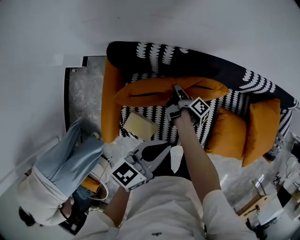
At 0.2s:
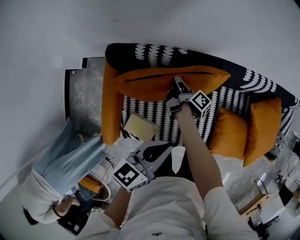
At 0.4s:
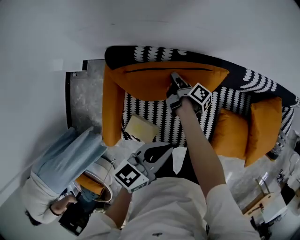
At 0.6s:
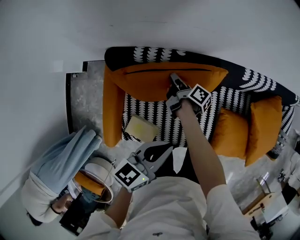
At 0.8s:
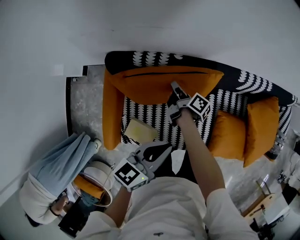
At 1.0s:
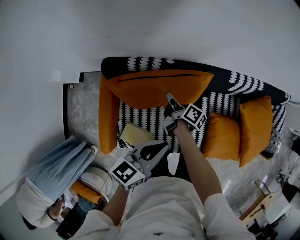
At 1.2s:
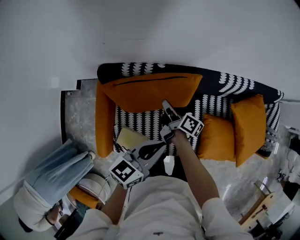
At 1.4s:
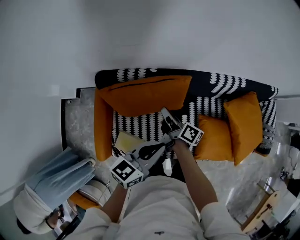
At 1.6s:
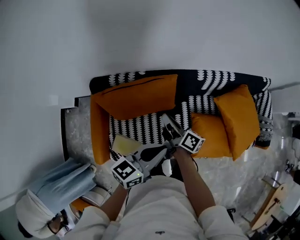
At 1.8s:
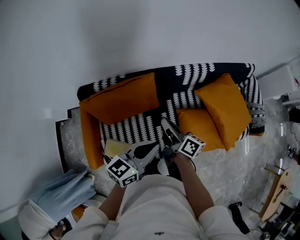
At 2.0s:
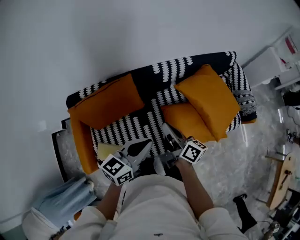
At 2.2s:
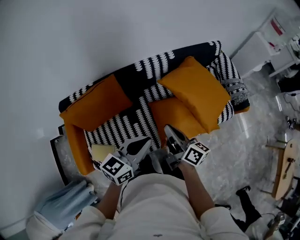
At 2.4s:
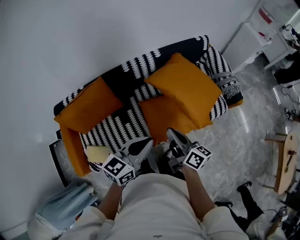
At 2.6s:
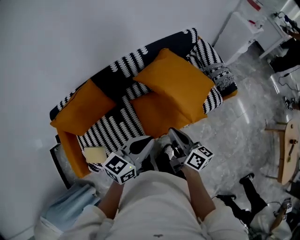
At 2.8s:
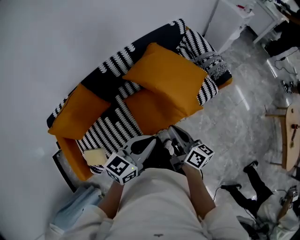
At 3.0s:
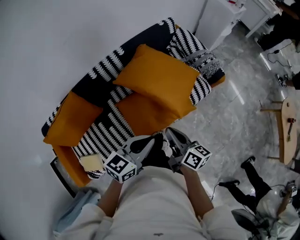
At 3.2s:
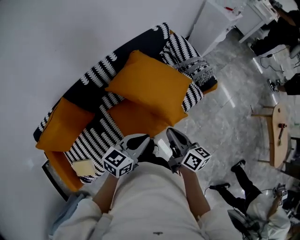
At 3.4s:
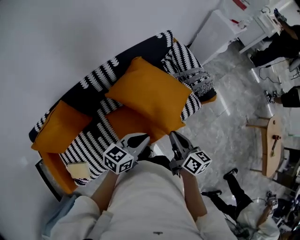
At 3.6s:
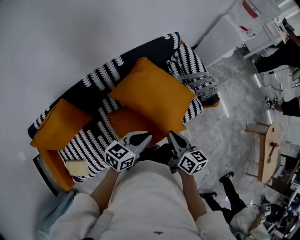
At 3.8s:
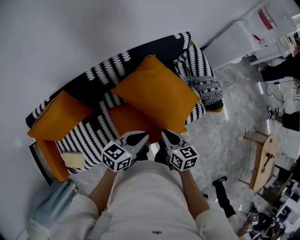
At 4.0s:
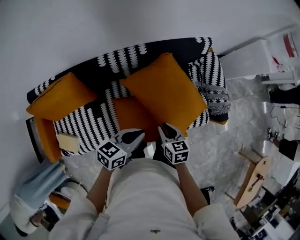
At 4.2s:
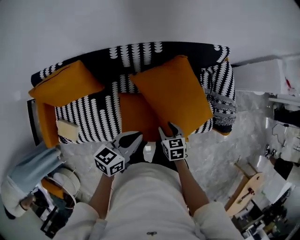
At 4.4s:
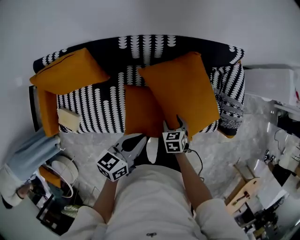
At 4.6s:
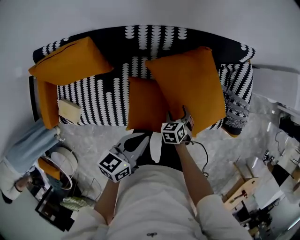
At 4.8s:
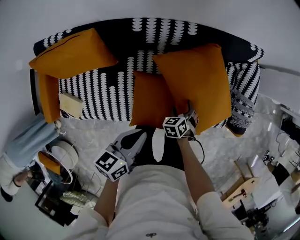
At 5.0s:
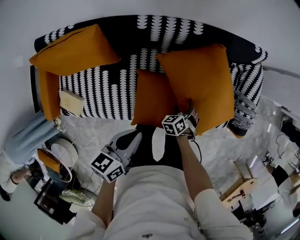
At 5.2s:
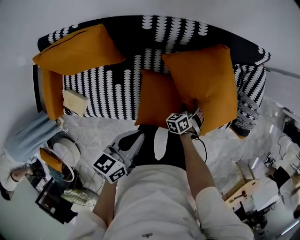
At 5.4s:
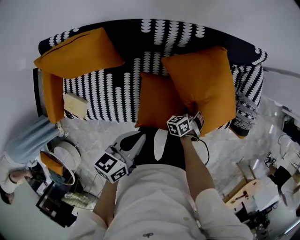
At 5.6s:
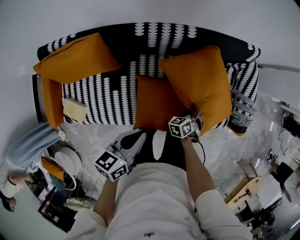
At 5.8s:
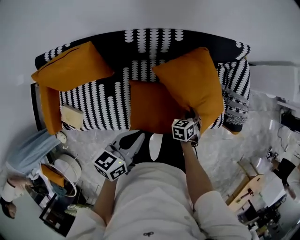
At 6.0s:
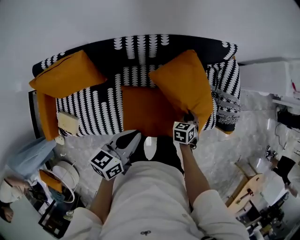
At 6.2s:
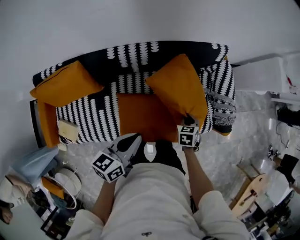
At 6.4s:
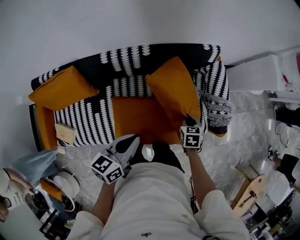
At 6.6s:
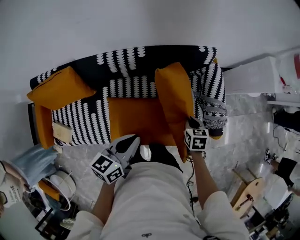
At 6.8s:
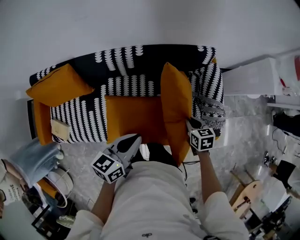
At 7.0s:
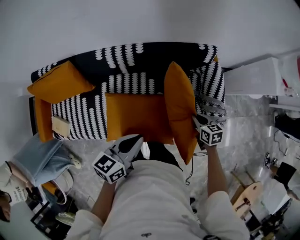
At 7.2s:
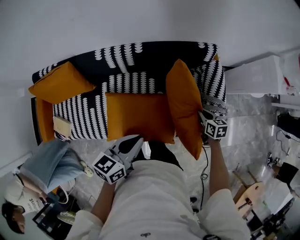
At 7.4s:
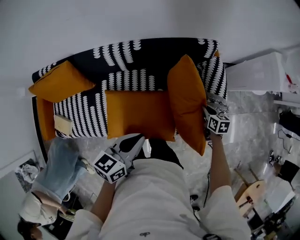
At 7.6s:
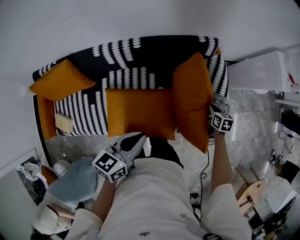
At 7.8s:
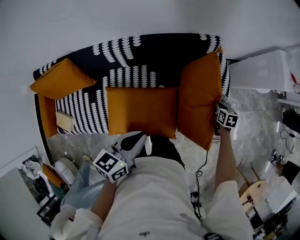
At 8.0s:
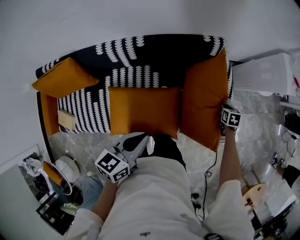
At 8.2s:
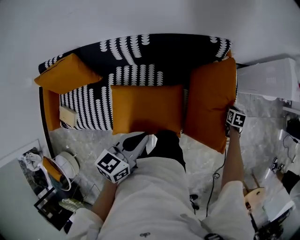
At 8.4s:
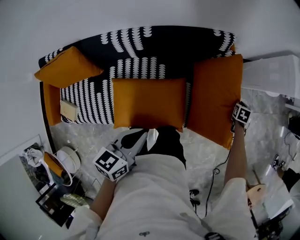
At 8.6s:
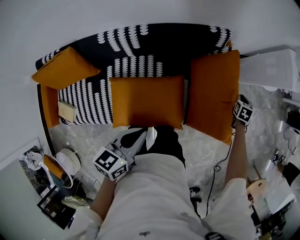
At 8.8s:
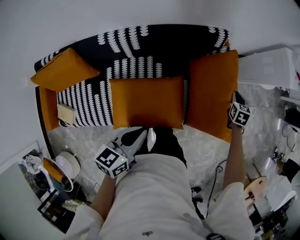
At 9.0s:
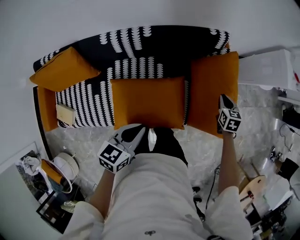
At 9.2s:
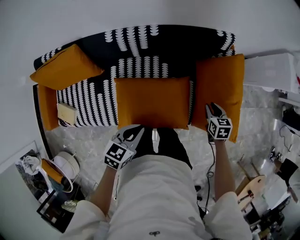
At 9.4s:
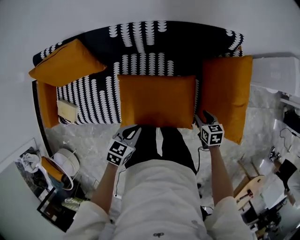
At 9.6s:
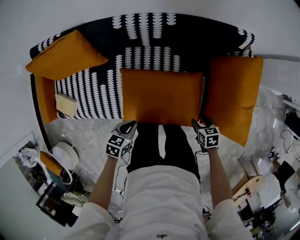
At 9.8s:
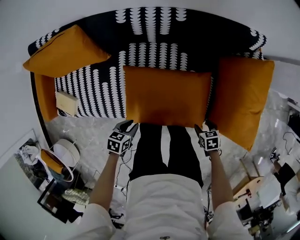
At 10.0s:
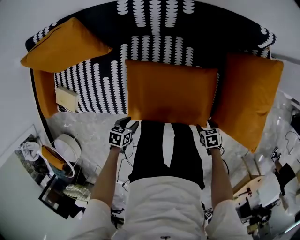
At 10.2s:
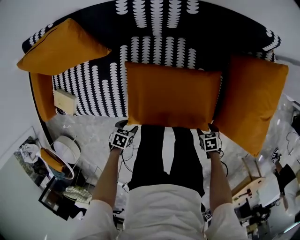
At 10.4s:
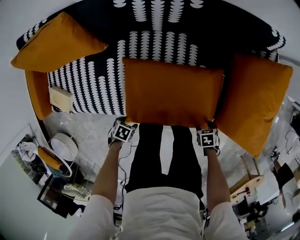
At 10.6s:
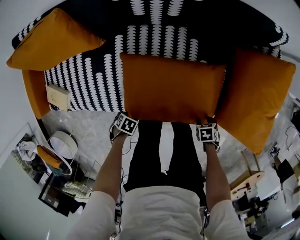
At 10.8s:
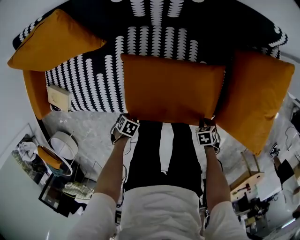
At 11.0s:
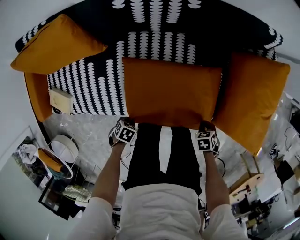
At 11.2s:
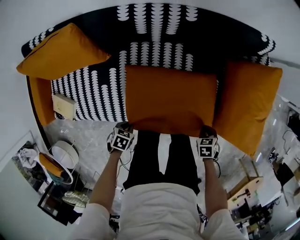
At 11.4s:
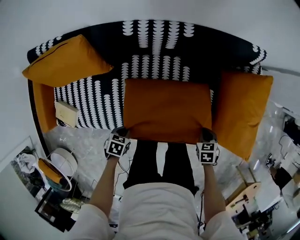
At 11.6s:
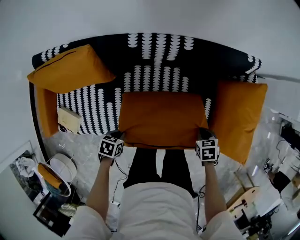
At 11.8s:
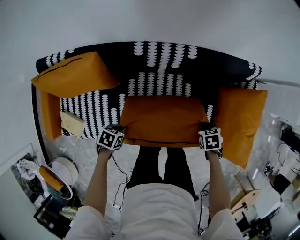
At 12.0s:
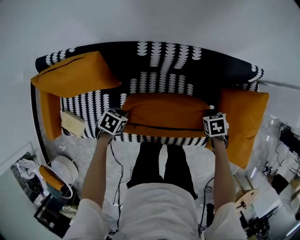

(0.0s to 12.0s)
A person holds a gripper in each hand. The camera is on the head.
0.0s - 1.6s: The right gripper heads upward and to the right, covering about 25 cm, and changes its angle by approximately 40 degrees, while the left gripper shifts some 15 cm to the right and upward.
1.6s - 3.0s: Both grippers are carried roughly 50 cm. The left gripper swivels roughly 30 degrees. The right gripper turns by roughly 30 degrees.
3.0s - 4.4s: The right gripper shifts roughly 20 cm downward, tips its fingers downward by some 50 degrees, and opens its fingers, while the left gripper changes place by roughly 20 cm, and swivels some 40 degrees.
4.4s - 6.0s: The right gripper goes about 10 cm to the right and forward, swivels roughly 20 degrees, and closes its fingers.
6.0s - 7.6s: The right gripper travels upward and back again, about 10 cm each way, and swivels some 30 degrees. The left gripper shifts by roughly 20 cm.
7.6s - 9.0s: The left gripper changes place by approximately 10 cm, while the right gripper moves upward, some 5 cm.
9.0s - 10.4s: The right gripper shifts by approximately 40 cm, tips its fingers downward by roughly 30 degrees, and opens, while the left gripper shifts some 40 cm downward, tips its fingers downward by approximately 40 degrees, and opens its fingers.
10.4s - 12.0s: The right gripper shifts by roughly 35 cm, and closes up, while the left gripper ends up some 35 cm from where it was, and closes.

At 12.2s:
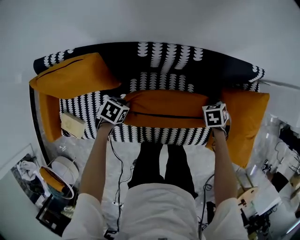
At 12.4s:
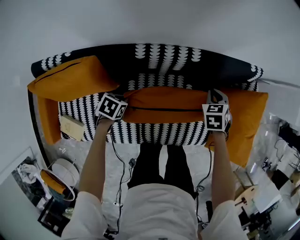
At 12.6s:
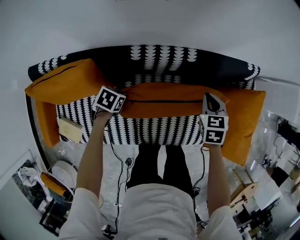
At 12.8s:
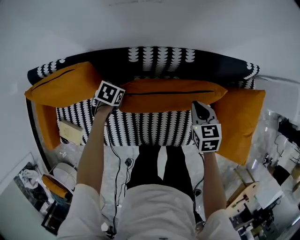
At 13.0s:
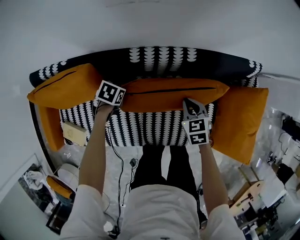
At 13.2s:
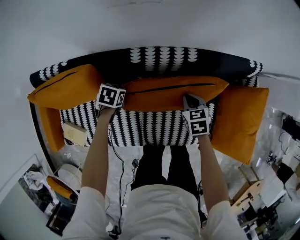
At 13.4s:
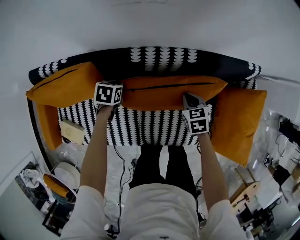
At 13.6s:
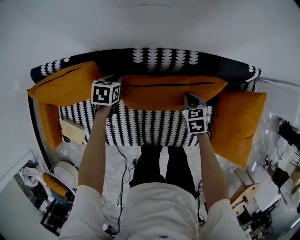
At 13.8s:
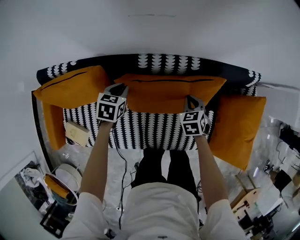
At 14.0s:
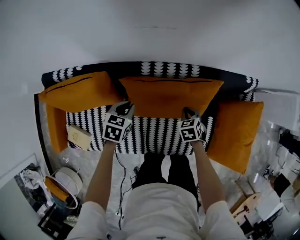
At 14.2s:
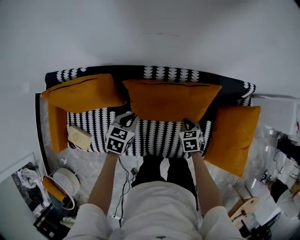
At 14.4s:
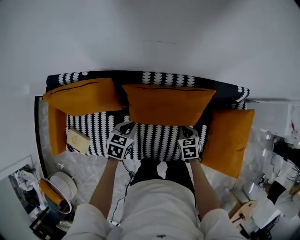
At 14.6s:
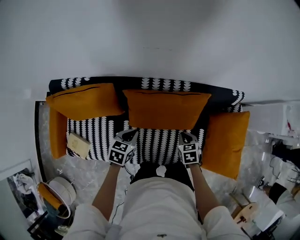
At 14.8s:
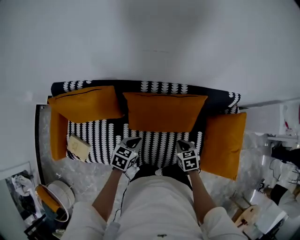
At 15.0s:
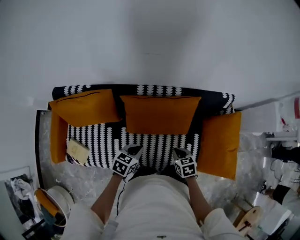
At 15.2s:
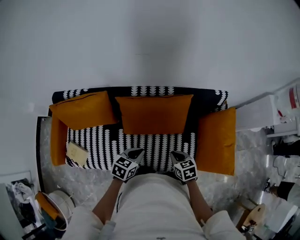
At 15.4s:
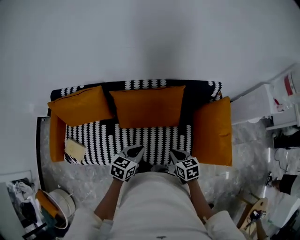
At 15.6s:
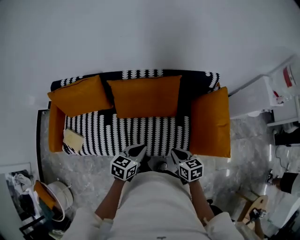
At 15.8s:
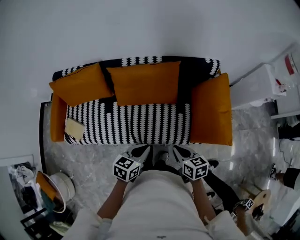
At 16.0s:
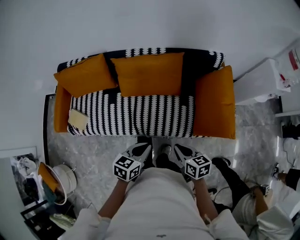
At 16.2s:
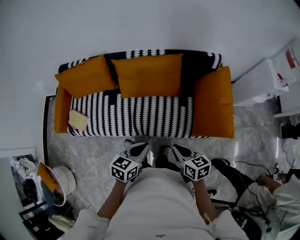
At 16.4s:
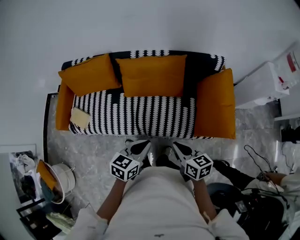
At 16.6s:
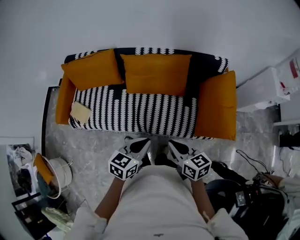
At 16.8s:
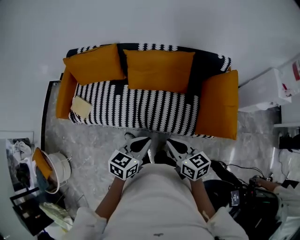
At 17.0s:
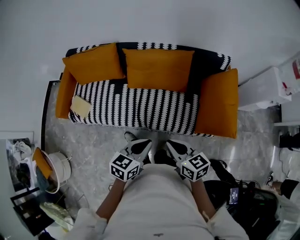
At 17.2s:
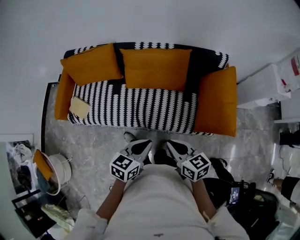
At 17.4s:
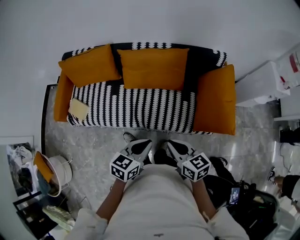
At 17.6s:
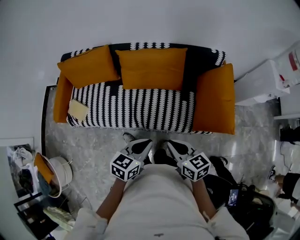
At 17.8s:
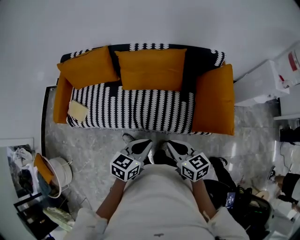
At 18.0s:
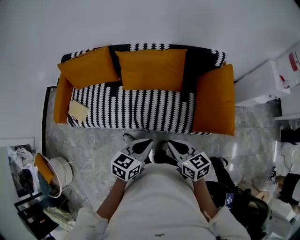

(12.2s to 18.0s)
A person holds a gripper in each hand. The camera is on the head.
12.2s - 13.6s: The right gripper goes upward and returns, some 10 cm each way, and turns by about 20 degrees; the left gripper moves some 15 cm, and rotates about 30 degrees.
13.6s - 15.0s: The right gripper travels backward and upward by some 20 cm; the left gripper moves backward, to the right and upward, about 30 cm, and changes its angle by some 20 degrees.
15.0s - 16.6s: The right gripper moves backward and upward, roughly 35 cm, and tilts its fingers approximately 30 degrees upward; the left gripper shifts about 35 cm backward, to the right and upward.
16.6s - 18.0s: There are only small adjustments of the grippers.

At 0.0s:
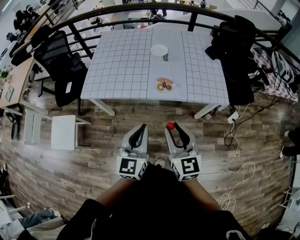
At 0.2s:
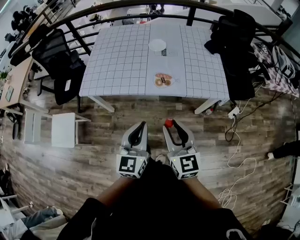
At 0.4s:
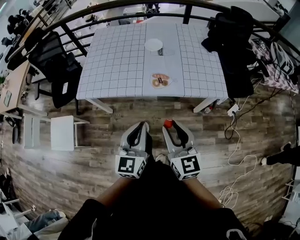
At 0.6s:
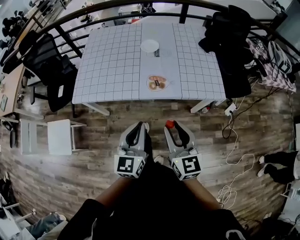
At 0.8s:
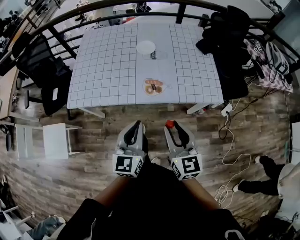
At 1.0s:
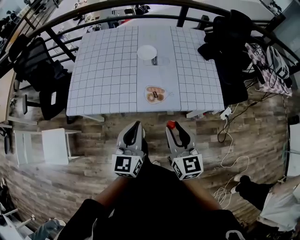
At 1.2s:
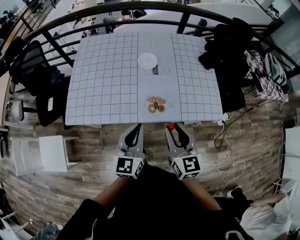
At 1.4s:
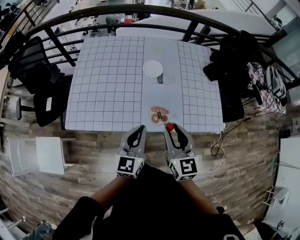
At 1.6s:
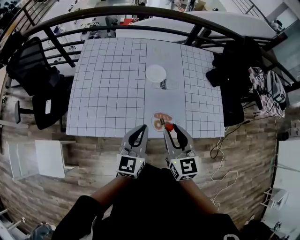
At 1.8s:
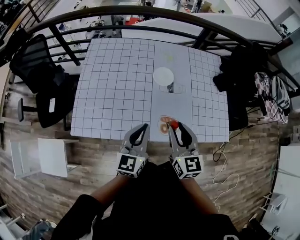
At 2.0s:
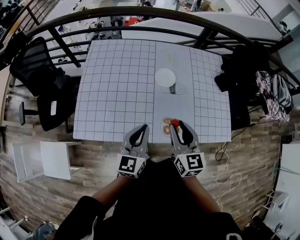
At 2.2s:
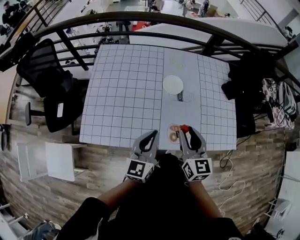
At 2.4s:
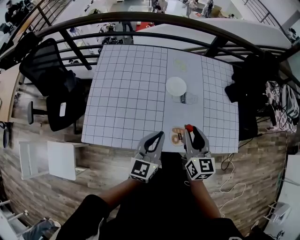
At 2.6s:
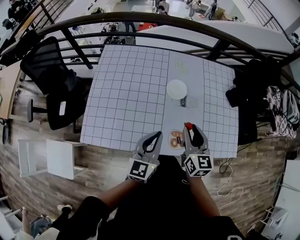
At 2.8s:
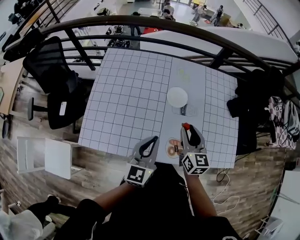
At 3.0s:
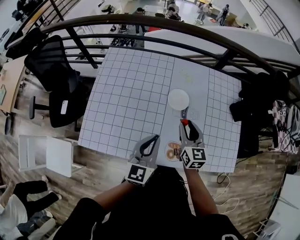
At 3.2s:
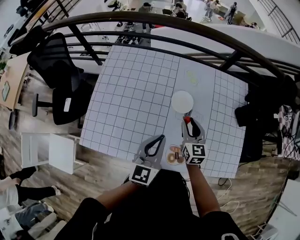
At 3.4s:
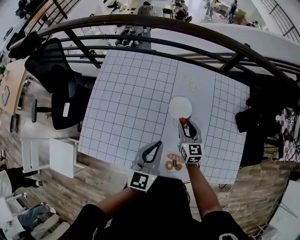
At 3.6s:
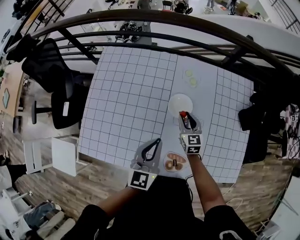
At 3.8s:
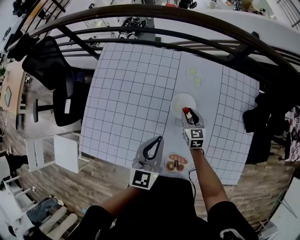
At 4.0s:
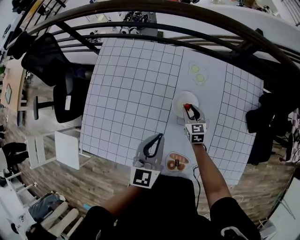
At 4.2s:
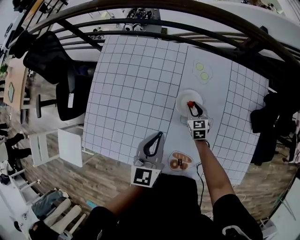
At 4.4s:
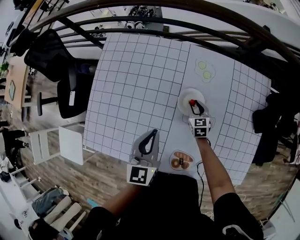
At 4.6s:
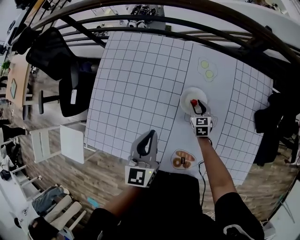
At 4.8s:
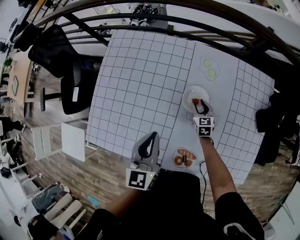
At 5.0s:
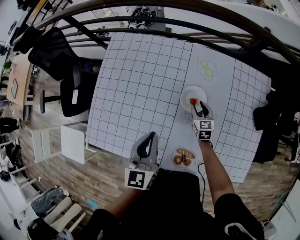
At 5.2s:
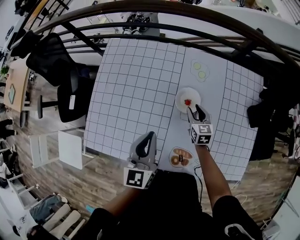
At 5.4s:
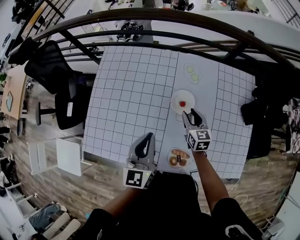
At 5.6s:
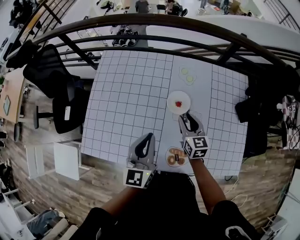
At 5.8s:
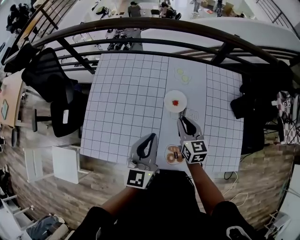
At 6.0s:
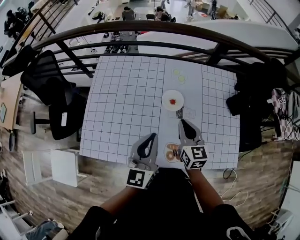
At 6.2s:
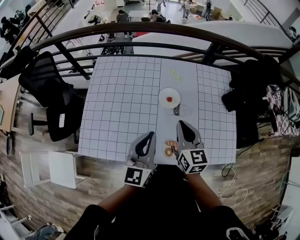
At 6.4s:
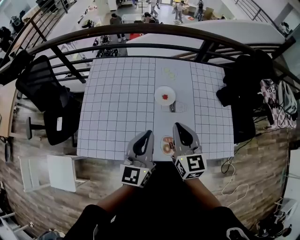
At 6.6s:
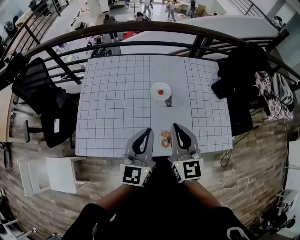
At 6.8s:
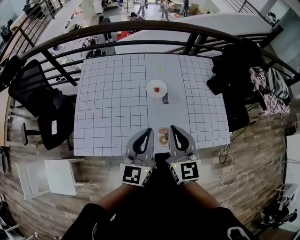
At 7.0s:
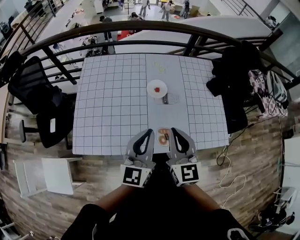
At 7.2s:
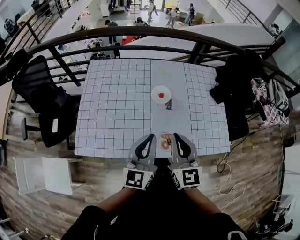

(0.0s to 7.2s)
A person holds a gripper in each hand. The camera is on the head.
0.0s - 1.4s: The two grippers go roughly 30 cm forward.
1.4s - 2.8s: The right gripper heads forward, covering approximately 20 cm; the left gripper is displaced forward by approximately 15 cm.
2.8s - 4.4s: The right gripper goes about 40 cm downward and forward, and changes its angle by approximately 30 degrees. Meanwhile the left gripper goes about 20 cm forward.
4.4s - 5.8s: The right gripper heads upward and backward, covering some 30 cm, and changes its angle by approximately 20 degrees. The left gripper shifts approximately 15 cm backward and upward.
5.8s - 7.2s: The right gripper moves backward and upward, approximately 25 cm, and changes its angle by approximately 20 degrees. Meanwhile the left gripper goes some 15 cm backward.
